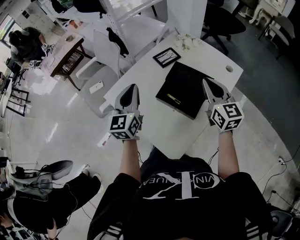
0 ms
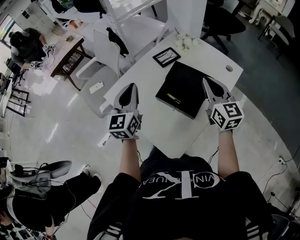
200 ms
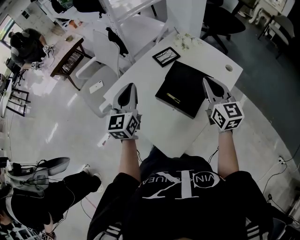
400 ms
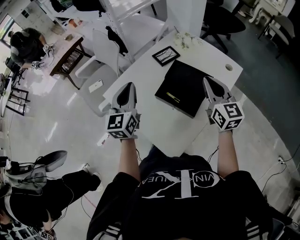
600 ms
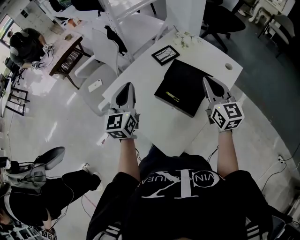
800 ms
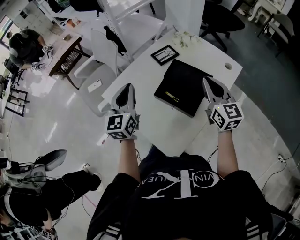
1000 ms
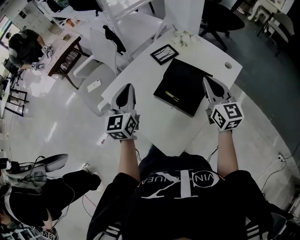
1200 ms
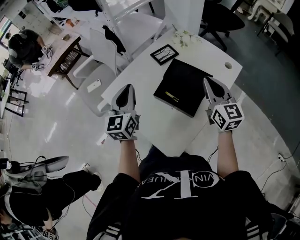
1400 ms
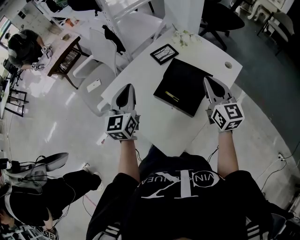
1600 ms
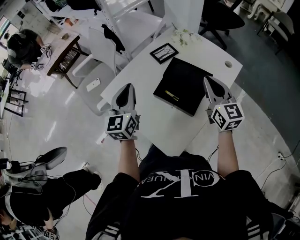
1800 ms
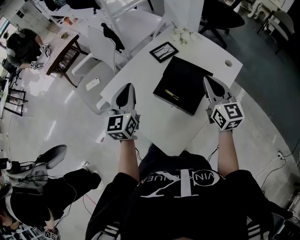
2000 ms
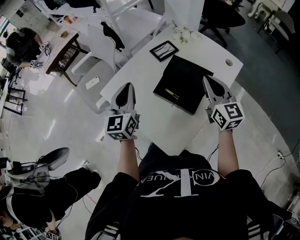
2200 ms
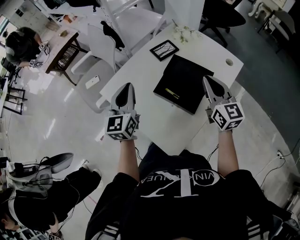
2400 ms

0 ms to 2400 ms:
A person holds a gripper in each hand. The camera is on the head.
0 ms to 1200 ms: Both grippers stay put.
1200 ms to 2400 ms: Both grippers stay put.

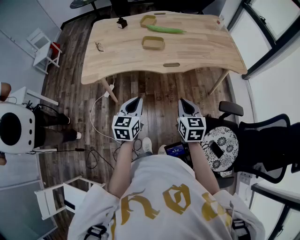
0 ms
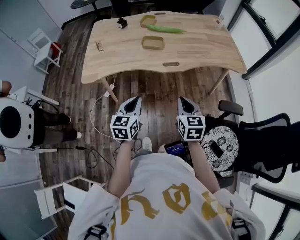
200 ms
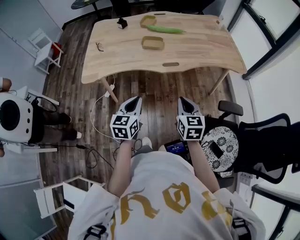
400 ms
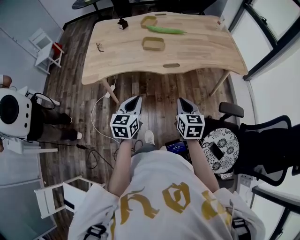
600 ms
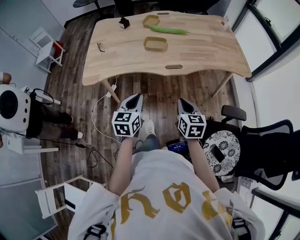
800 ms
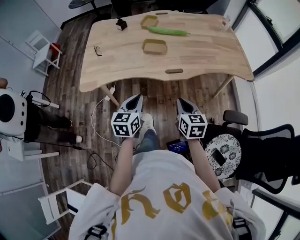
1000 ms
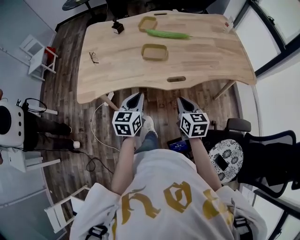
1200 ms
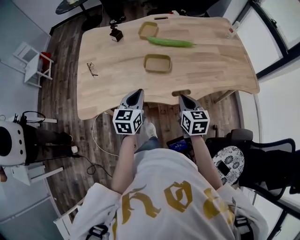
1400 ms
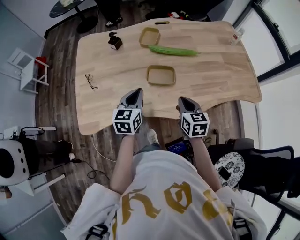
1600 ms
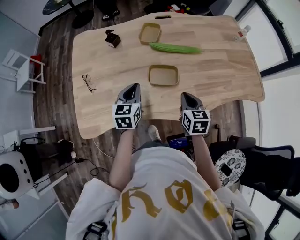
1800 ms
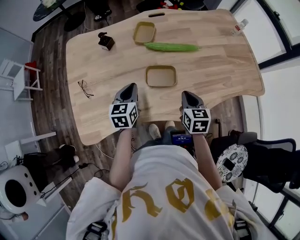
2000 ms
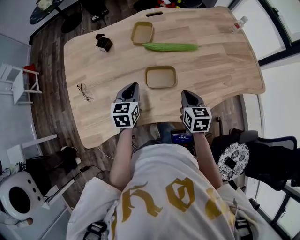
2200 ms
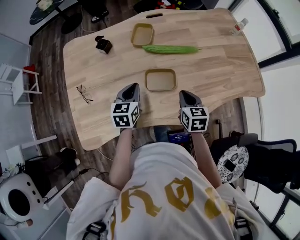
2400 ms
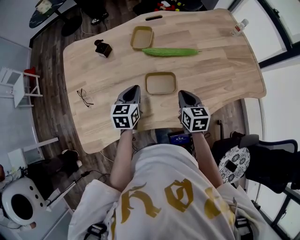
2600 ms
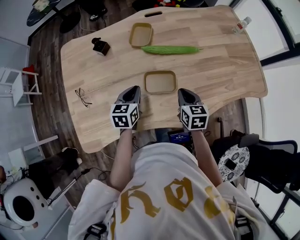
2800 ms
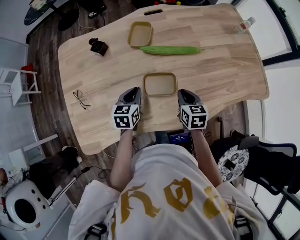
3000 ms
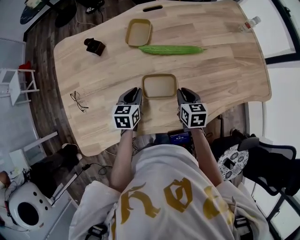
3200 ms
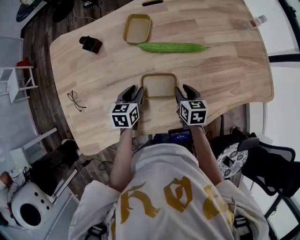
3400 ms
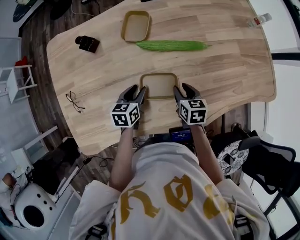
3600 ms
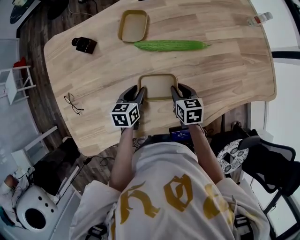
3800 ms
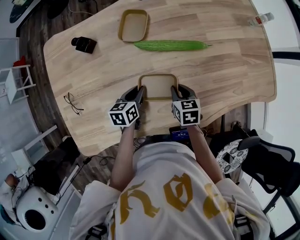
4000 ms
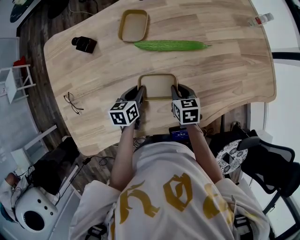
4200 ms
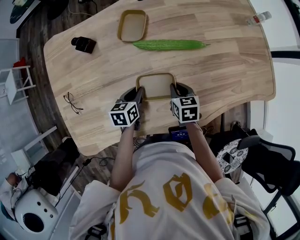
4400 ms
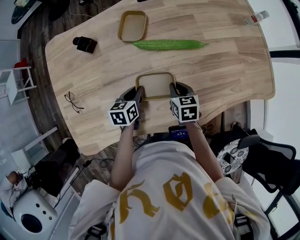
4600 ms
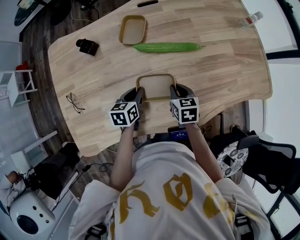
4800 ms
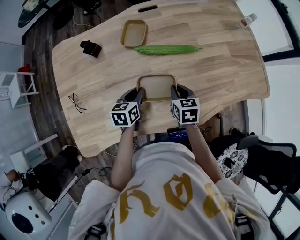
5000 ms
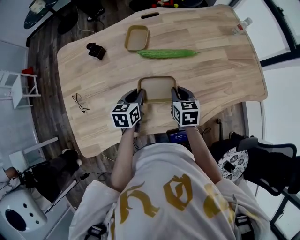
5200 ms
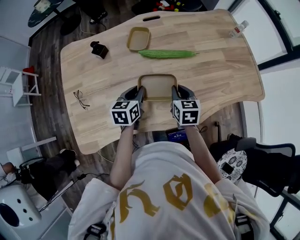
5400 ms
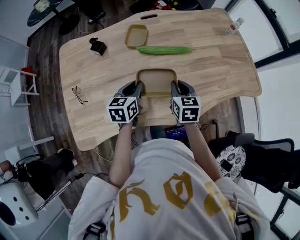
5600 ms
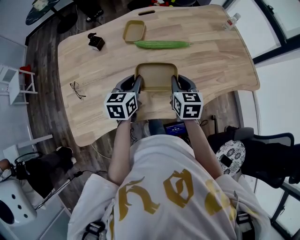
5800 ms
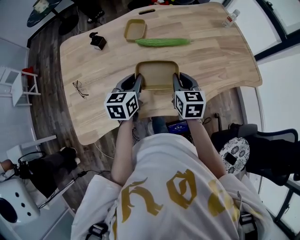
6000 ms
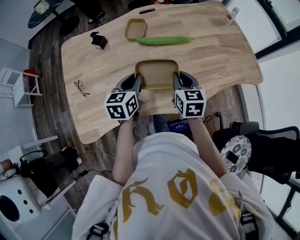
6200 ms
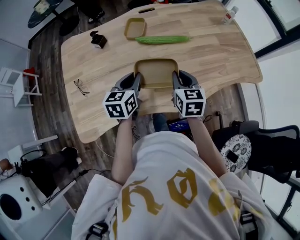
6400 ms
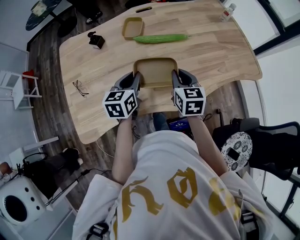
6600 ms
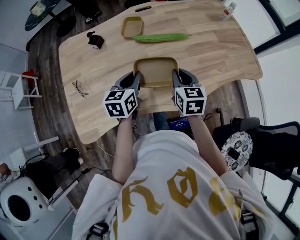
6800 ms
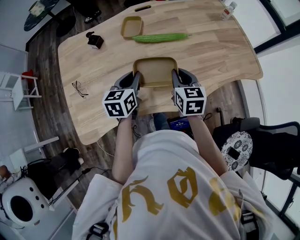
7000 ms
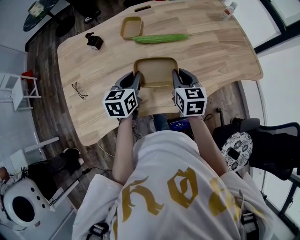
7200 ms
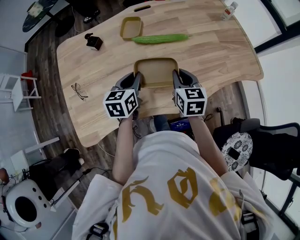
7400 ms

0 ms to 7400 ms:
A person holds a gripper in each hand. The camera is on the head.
0 ms to 1400 ms: Both grippers move forward, approximately 30 cm.
1400 ms to 3000 ms: The grippers both shift forward and downward by some 25 cm.
3000 ms to 4400 ms: Both grippers move downward, some 10 cm. The right gripper opens, then closes once more.
4400 ms to 6000 ms: The right gripper travels upward and backward by approximately 20 cm, and turns by approximately 20 degrees, while the left gripper travels upward by some 20 cm, and changes its angle by some 20 degrees.
6000 ms to 7400 ms: There are only small adjustments of the grippers.

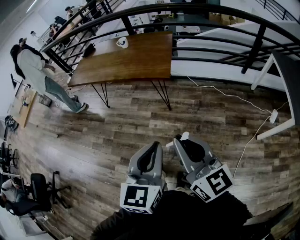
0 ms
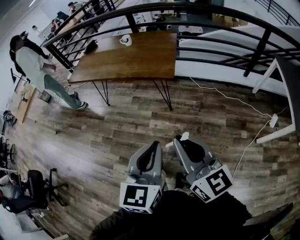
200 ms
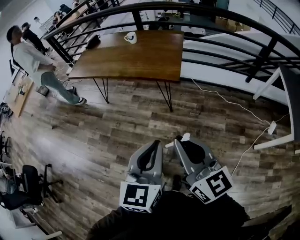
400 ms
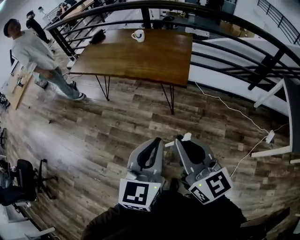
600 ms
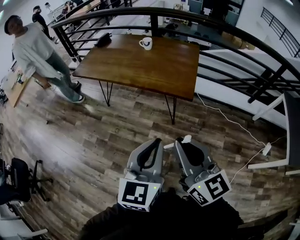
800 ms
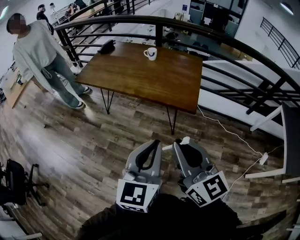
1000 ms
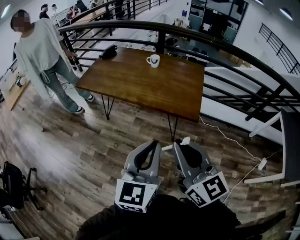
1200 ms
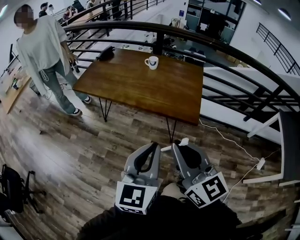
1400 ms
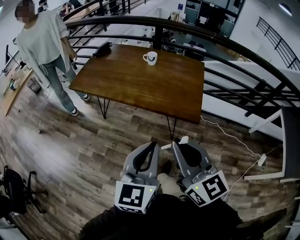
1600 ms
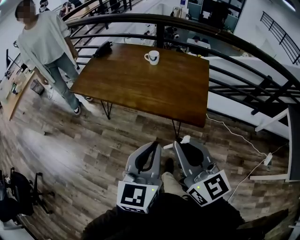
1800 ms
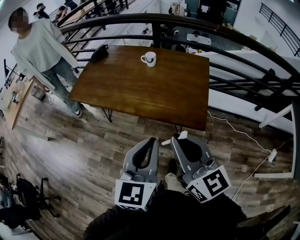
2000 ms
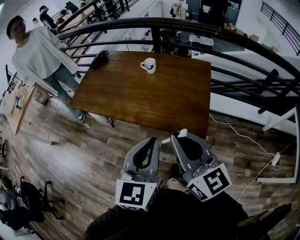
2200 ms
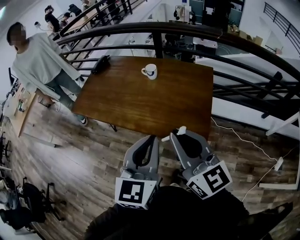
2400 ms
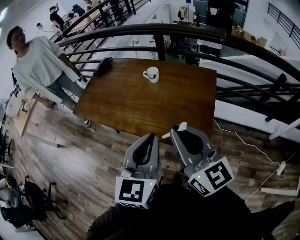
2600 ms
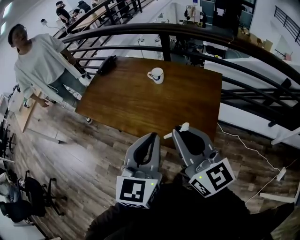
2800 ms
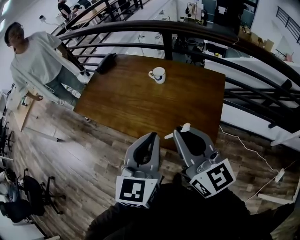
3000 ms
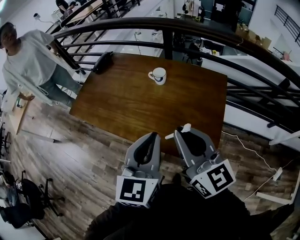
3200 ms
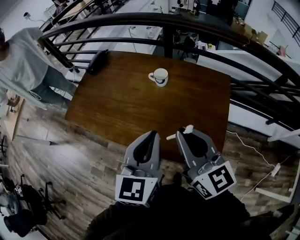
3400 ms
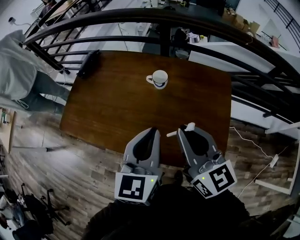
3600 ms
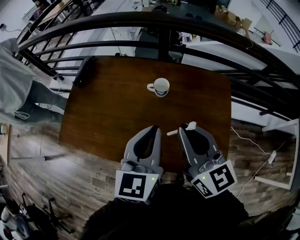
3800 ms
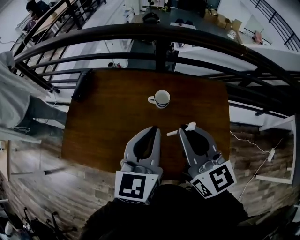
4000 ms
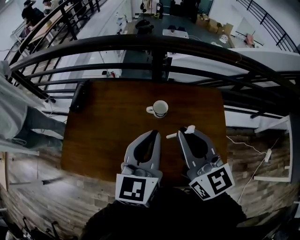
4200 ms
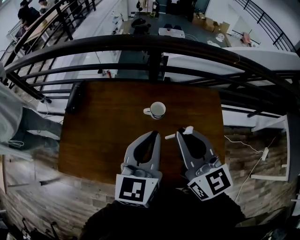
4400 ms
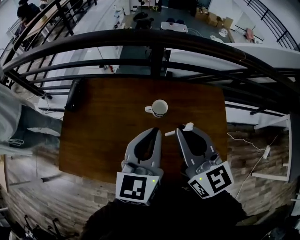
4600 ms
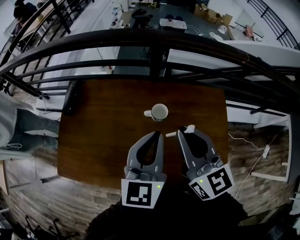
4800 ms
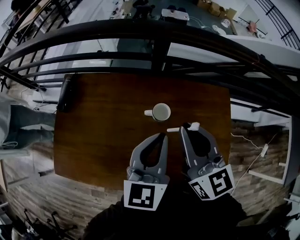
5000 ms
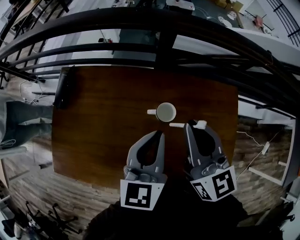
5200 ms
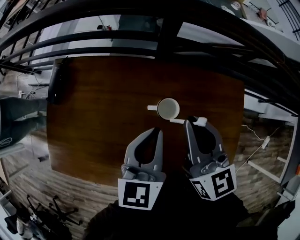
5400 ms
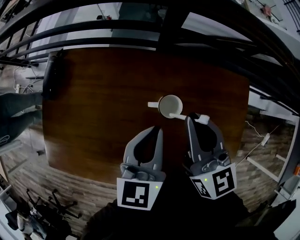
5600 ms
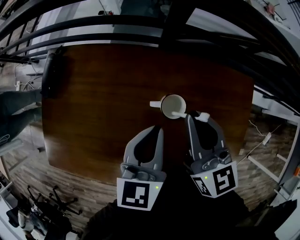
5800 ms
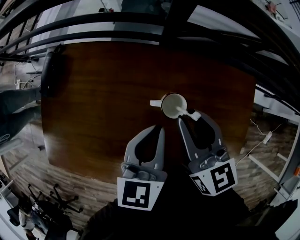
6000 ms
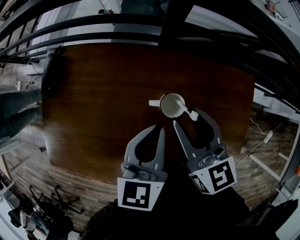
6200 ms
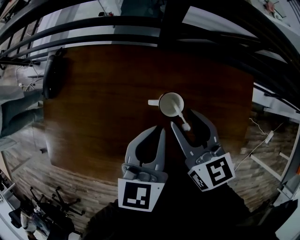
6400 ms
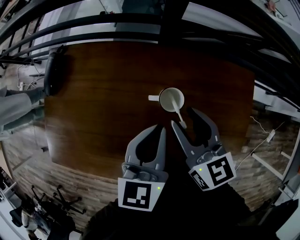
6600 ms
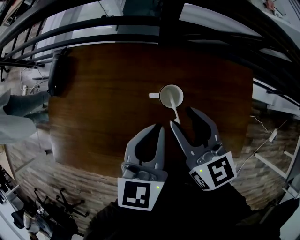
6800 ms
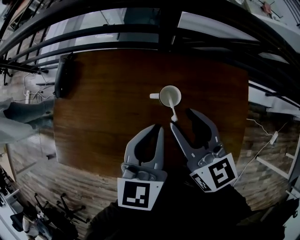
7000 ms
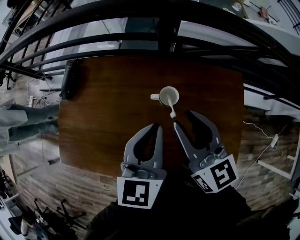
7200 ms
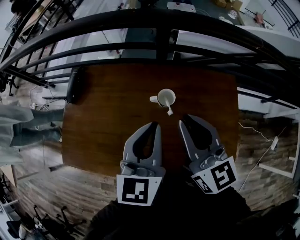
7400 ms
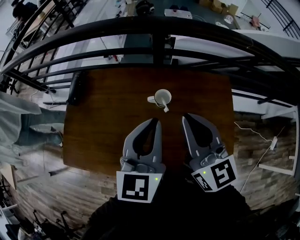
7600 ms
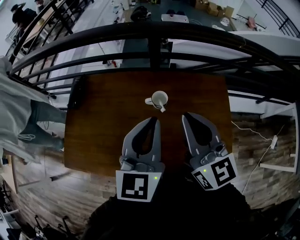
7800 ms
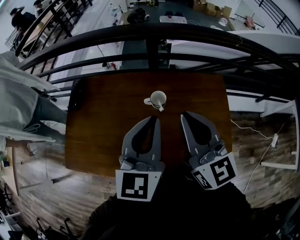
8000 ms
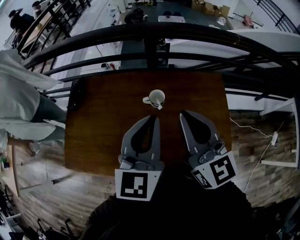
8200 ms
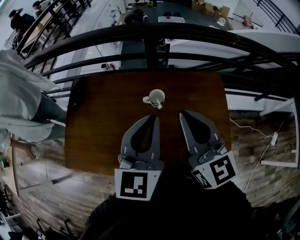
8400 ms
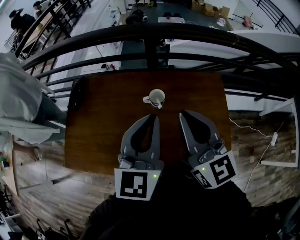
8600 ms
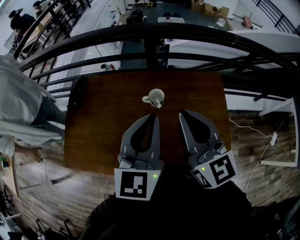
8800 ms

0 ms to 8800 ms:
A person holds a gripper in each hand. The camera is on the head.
0 ms to 1400 ms: The grippers both shift forward and to the left by about 30 cm.
1400 ms to 3000 ms: Both grippers travel together forward, roughly 30 cm.
3000 ms to 4400 ms: Both grippers move forward, roughly 30 cm. The left gripper changes its angle by approximately 20 degrees, while the right gripper turns by roughly 20 degrees.
4400 ms to 5800 ms: The left gripper shifts roughly 20 cm downward and forward, and changes its angle by roughly 20 degrees; the right gripper moves forward and downward, about 20 cm.
5800 ms to 7400 ms: The right gripper heads backward and upward, covering about 15 cm, and opens and closes again. Meanwhile the left gripper heads upward and backward, covering roughly 15 cm.
7400 ms to 8800 ms: The right gripper travels backward and upward by about 10 cm. The left gripper shifts approximately 10 cm upward and backward.

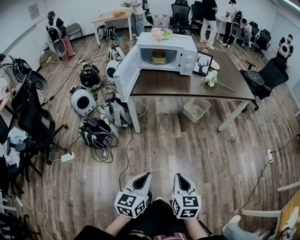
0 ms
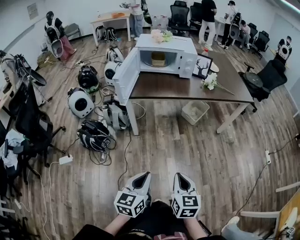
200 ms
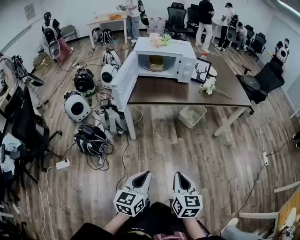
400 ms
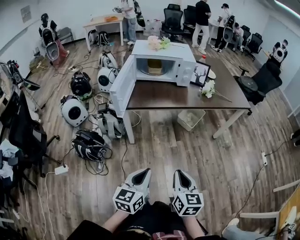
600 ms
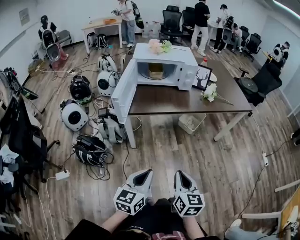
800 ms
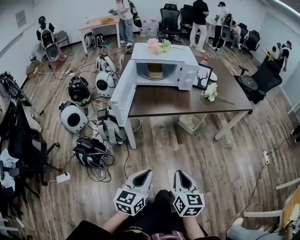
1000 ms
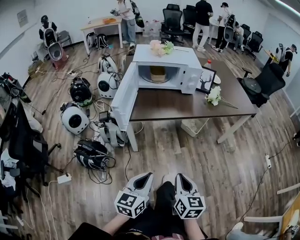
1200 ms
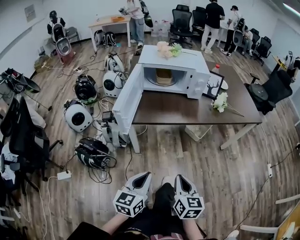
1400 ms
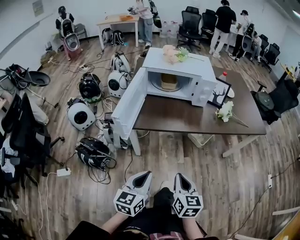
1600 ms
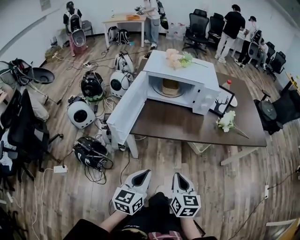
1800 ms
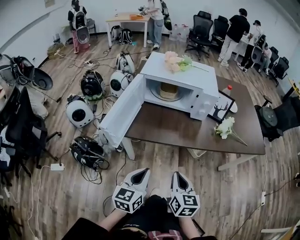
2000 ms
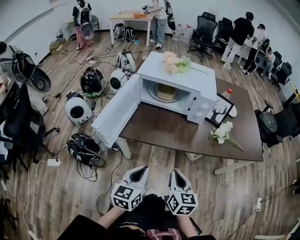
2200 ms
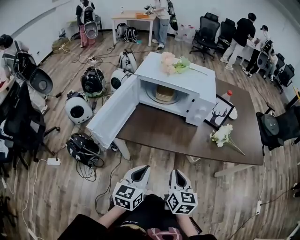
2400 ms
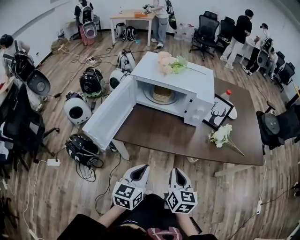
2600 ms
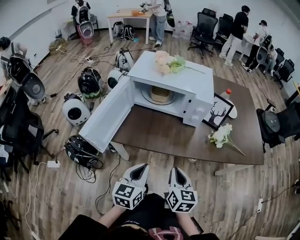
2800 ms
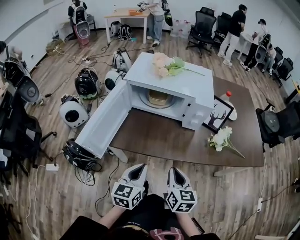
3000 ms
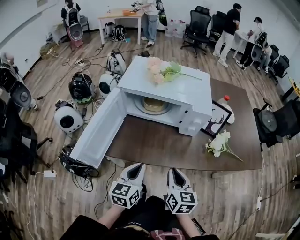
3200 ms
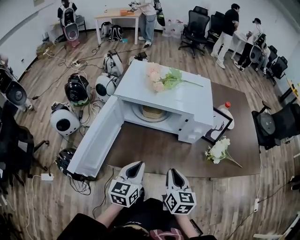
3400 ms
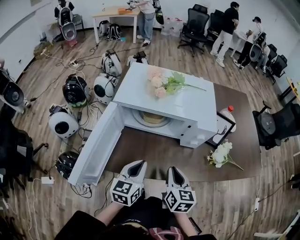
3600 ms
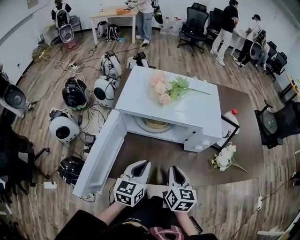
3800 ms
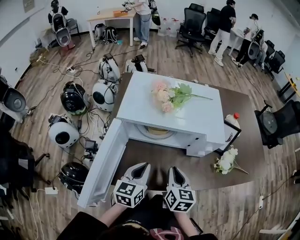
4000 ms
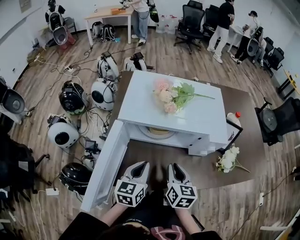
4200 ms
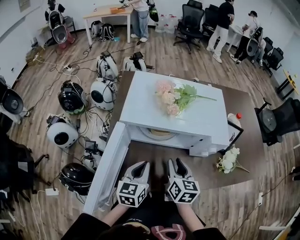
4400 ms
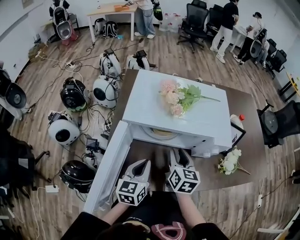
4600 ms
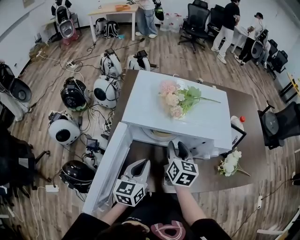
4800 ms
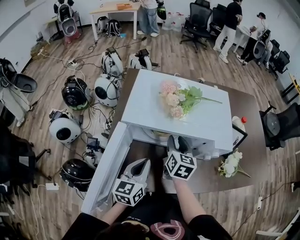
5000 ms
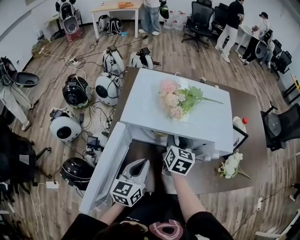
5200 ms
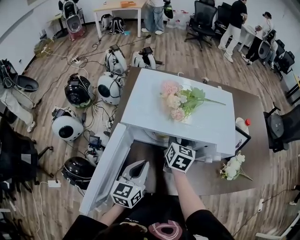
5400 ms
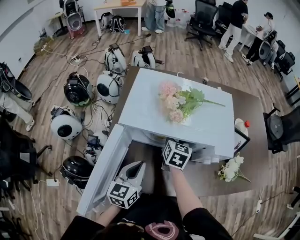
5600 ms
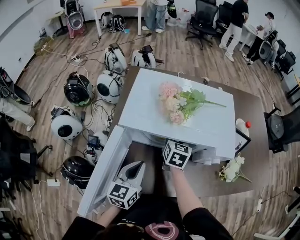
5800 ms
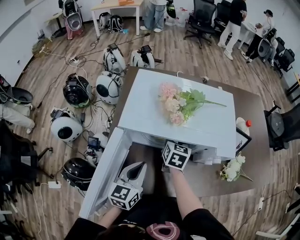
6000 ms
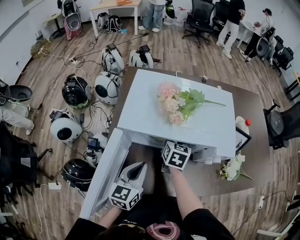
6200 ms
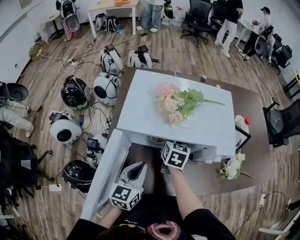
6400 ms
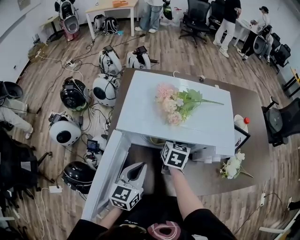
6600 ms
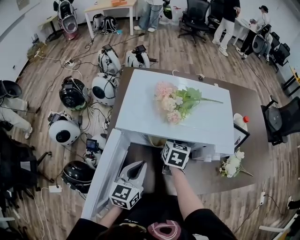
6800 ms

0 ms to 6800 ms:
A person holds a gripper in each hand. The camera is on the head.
0 ms to 1400 ms: Both grippers travel together forward and to the left, about 25 cm.
1400 ms to 2800 ms: The left gripper heads forward and to the right, covering roughly 25 cm, while the right gripper heads forward, covering approximately 25 cm.
2800 ms to 4000 ms: Both grippers move forward, about 20 cm.
4000 ms to 5400 ms: The right gripper heads forward, covering some 20 cm, and opens its fingers.
5400 ms to 6800 ms: The right gripper closes.
